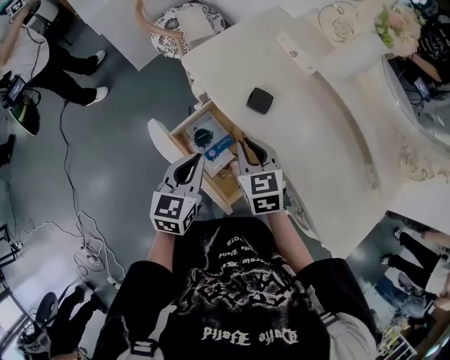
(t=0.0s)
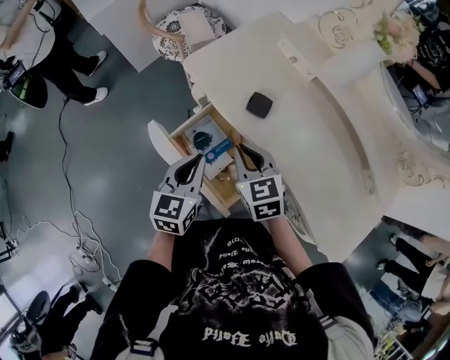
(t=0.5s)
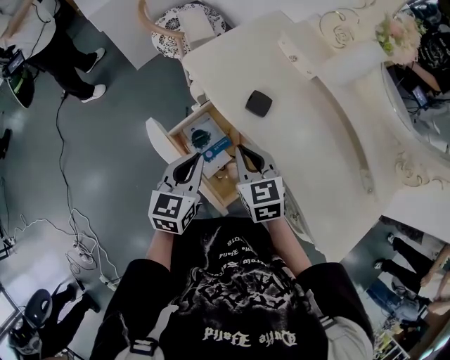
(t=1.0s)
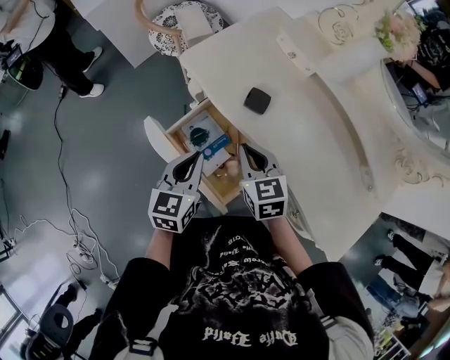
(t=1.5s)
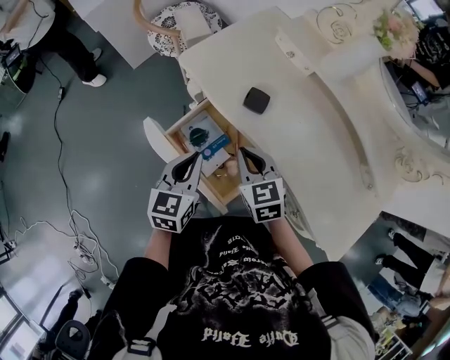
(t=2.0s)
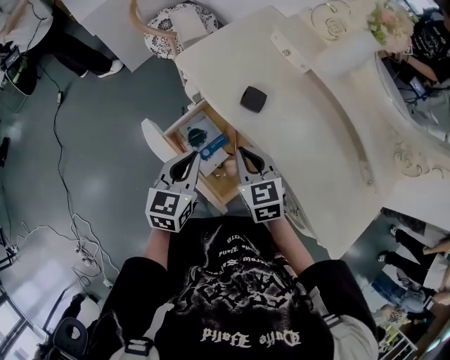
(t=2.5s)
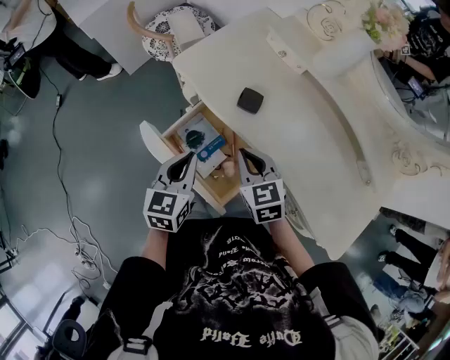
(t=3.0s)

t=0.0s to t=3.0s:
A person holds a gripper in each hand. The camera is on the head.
t=0.0s to t=3.0s: There are only small adjustments of the grippers.

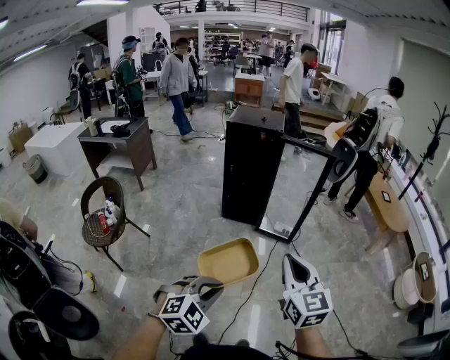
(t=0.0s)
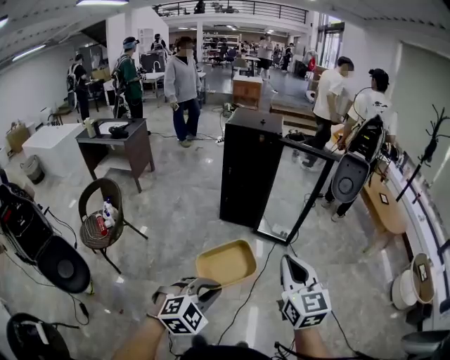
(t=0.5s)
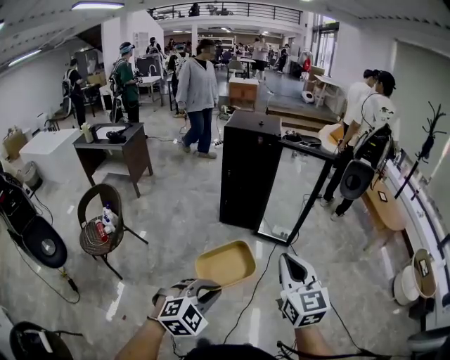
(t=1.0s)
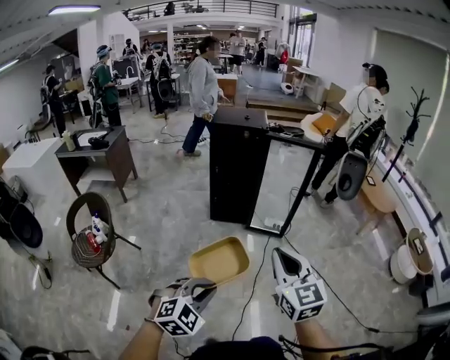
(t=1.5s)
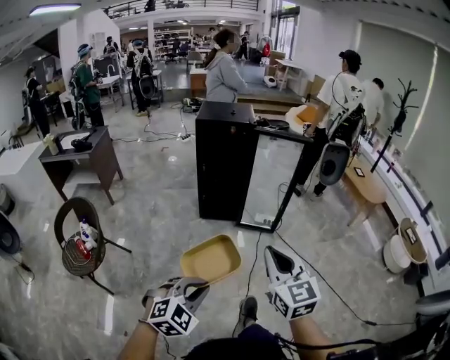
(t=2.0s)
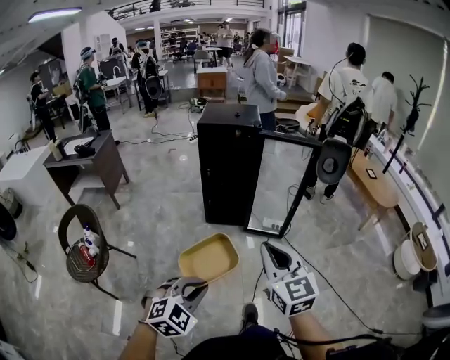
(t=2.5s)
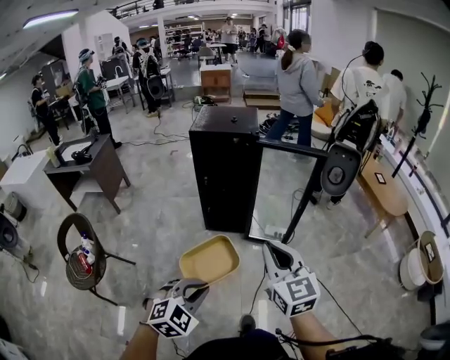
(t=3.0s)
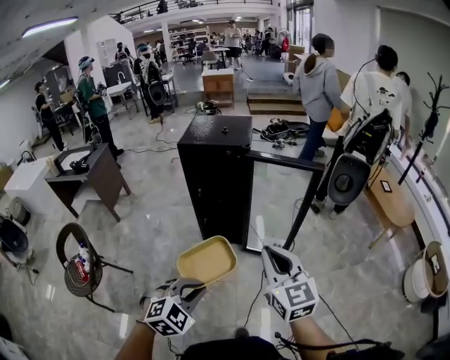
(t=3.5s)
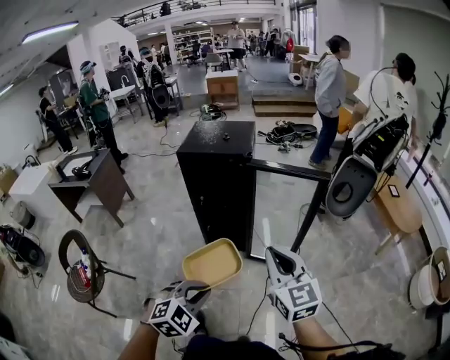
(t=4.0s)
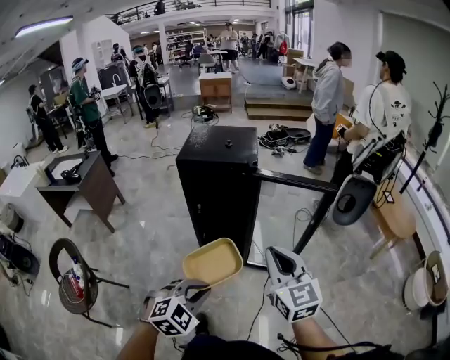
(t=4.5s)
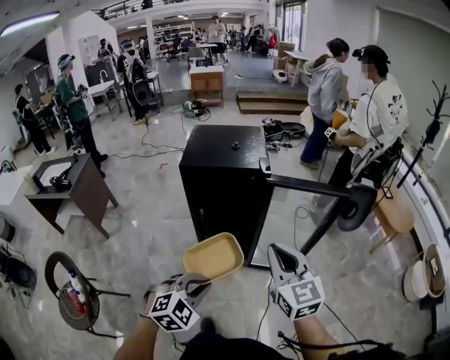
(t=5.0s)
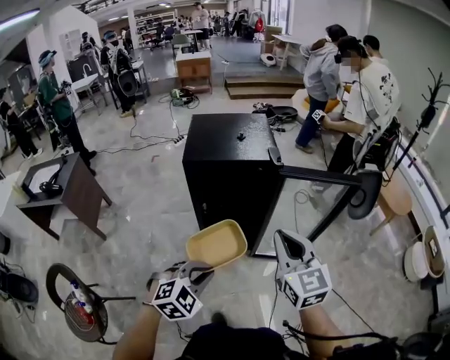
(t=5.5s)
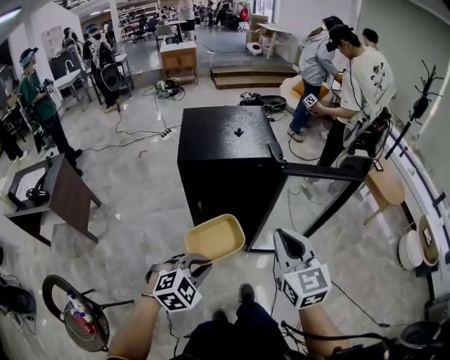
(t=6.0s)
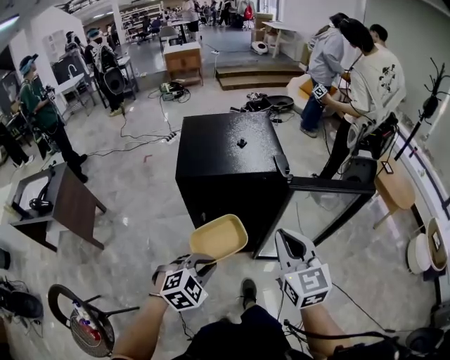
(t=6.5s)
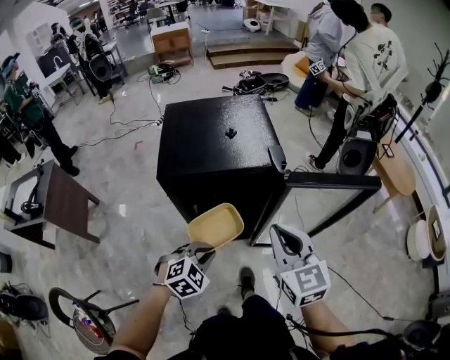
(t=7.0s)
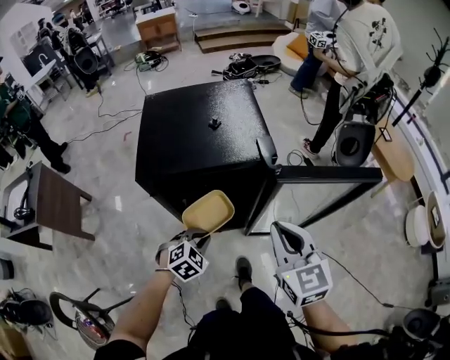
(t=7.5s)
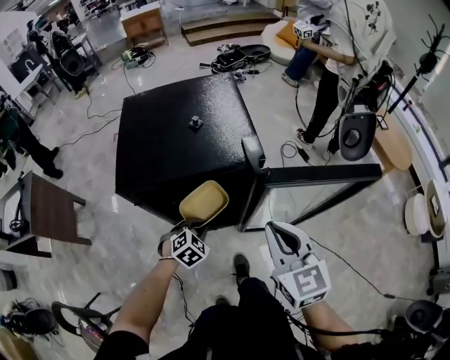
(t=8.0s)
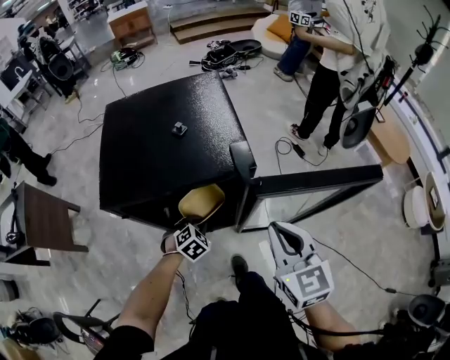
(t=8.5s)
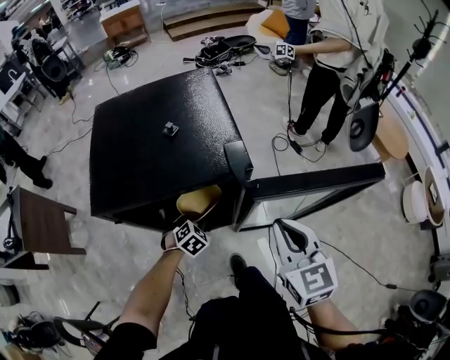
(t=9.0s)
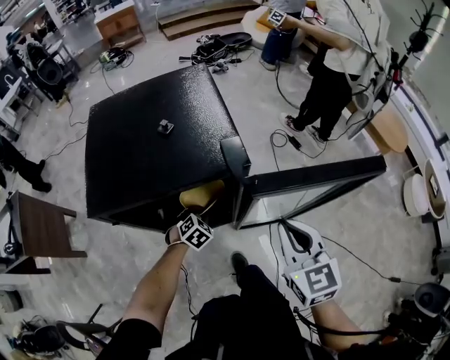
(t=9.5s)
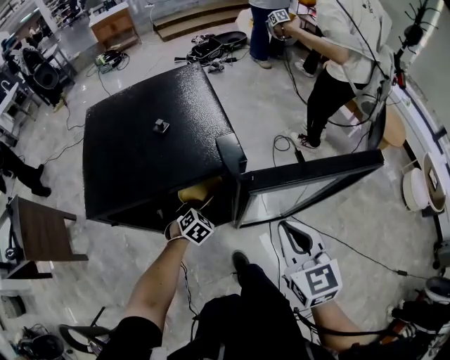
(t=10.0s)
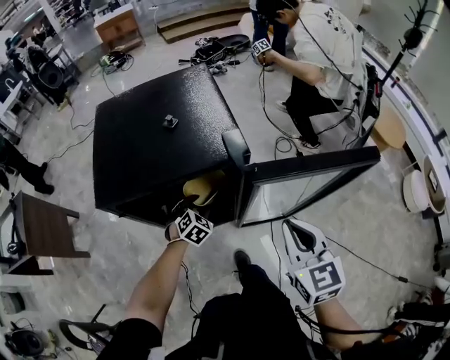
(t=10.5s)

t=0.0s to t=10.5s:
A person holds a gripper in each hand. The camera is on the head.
t=0.0s to t=2.0s: Both grippers move to the left, about 10 cm.
t=2.0s to t=4.0s: Both grippers travel together forward, some 30 cm.
t=4.0s to t=6.5s: The two grippers go roughly 30 cm forward and to the left.
t=6.5s to t=8.5s: The right gripper moves forward, downward and to the right, about 15 cm, while the left gripper heads forward and downward, covering about 30 cm.
t=8.5s to t=10.5s: The left gripper heads forward, covering approximately 5 cm, and opens up.

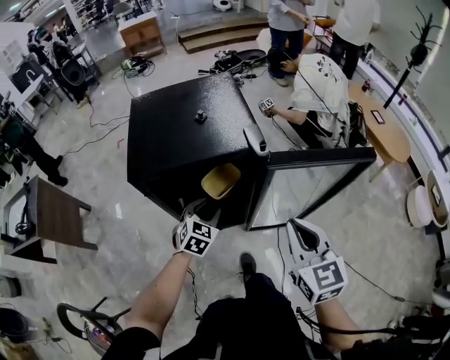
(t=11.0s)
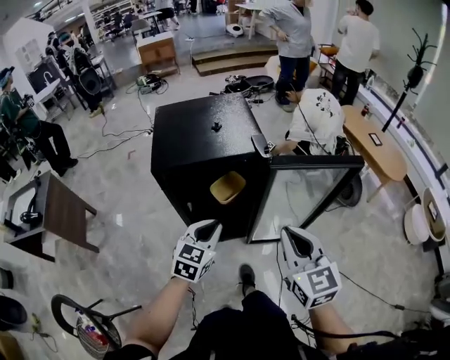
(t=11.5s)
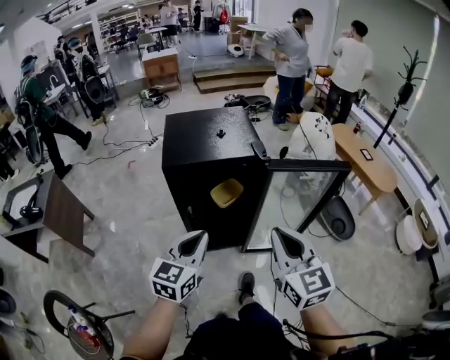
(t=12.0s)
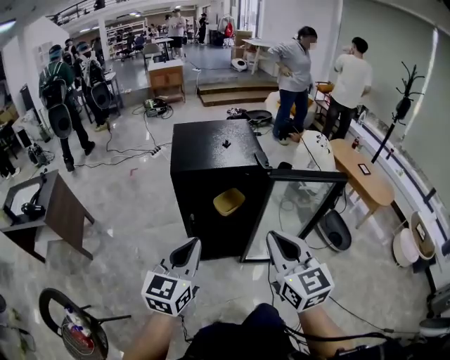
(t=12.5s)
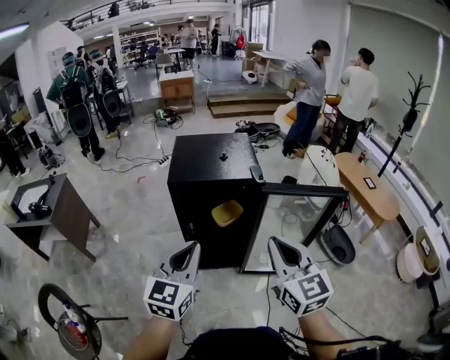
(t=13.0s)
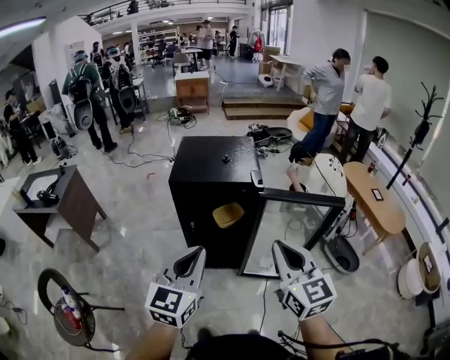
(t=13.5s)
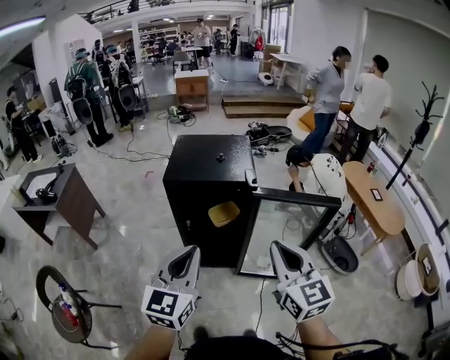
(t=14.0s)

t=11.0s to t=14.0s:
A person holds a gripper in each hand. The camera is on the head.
t=11.0s to t=12.5s: The right gripper heads backward, upward and to the left, covering about 20 cm, while the left gripper is displaced upward and backward by approximately 35 cm, angles its fingers upward, by roughly 30 degrees, and closes its fingers.
t=12.5s to t=14.0s: The right gripper is displaced to the right by some 10 cm. Meanwhile the left gripper heads to the right and upward, covering some 10 cm.

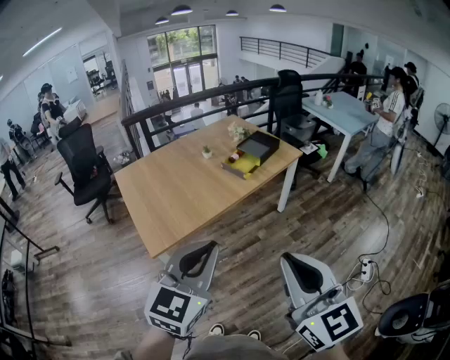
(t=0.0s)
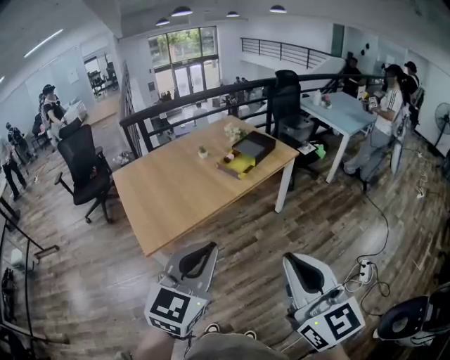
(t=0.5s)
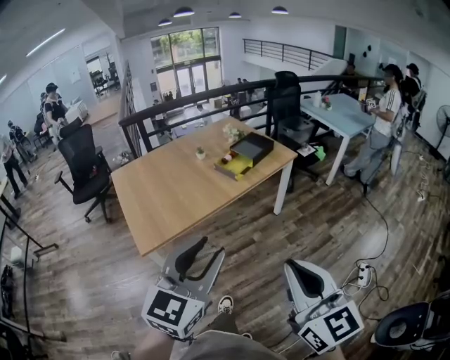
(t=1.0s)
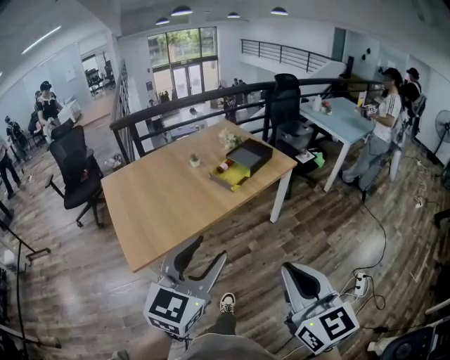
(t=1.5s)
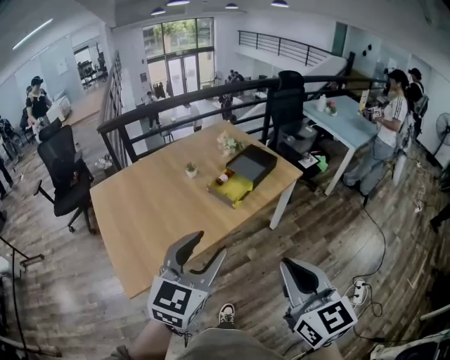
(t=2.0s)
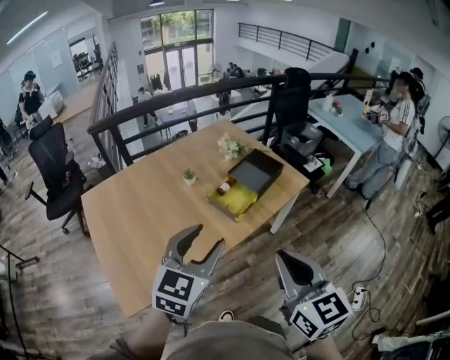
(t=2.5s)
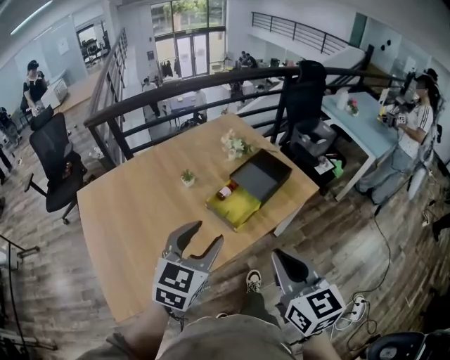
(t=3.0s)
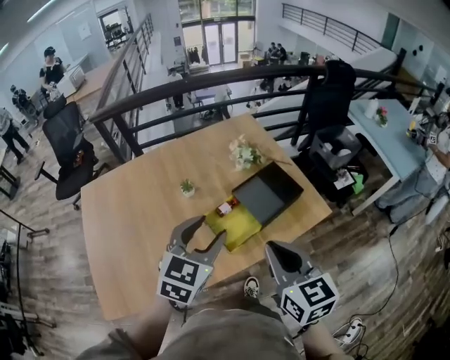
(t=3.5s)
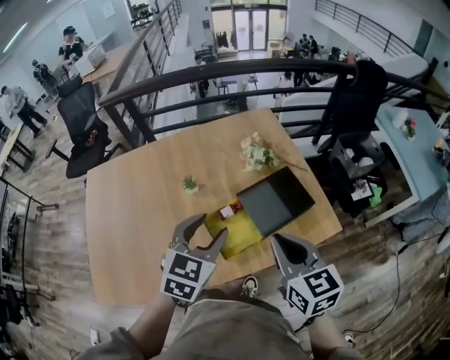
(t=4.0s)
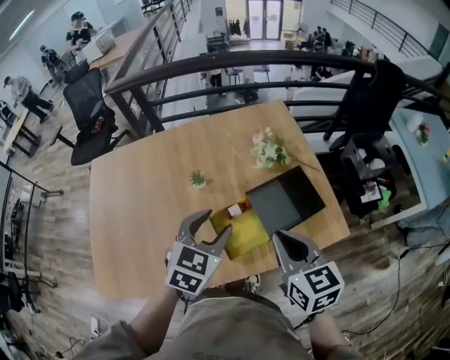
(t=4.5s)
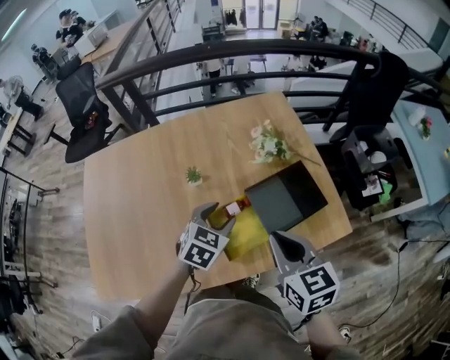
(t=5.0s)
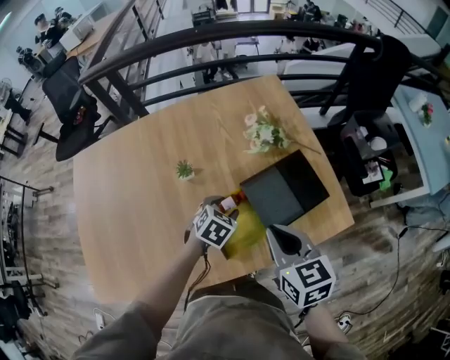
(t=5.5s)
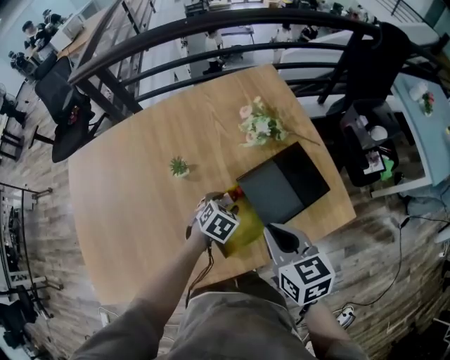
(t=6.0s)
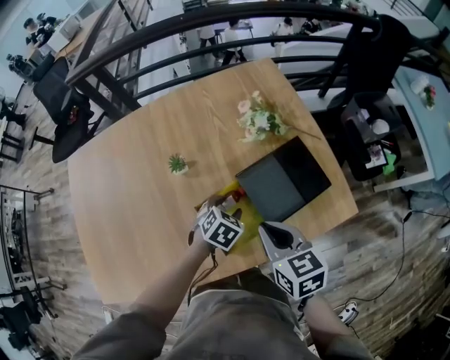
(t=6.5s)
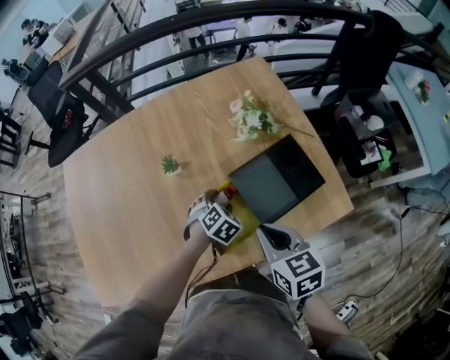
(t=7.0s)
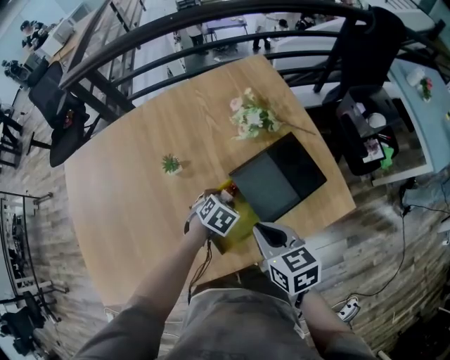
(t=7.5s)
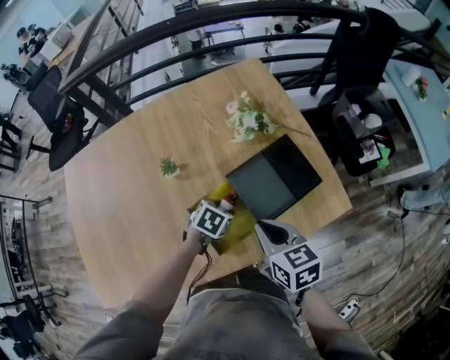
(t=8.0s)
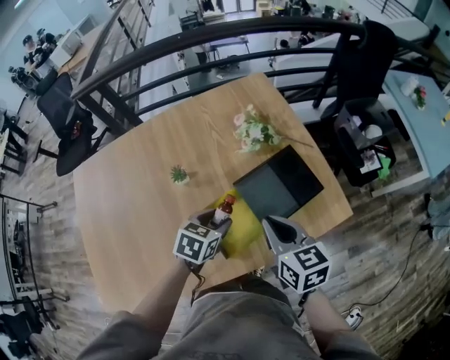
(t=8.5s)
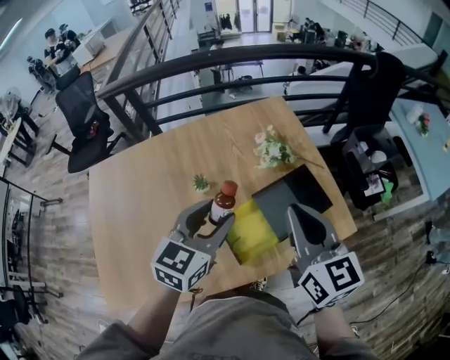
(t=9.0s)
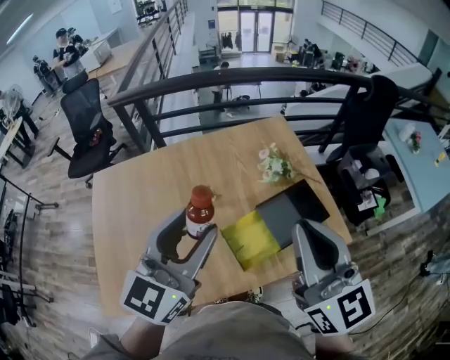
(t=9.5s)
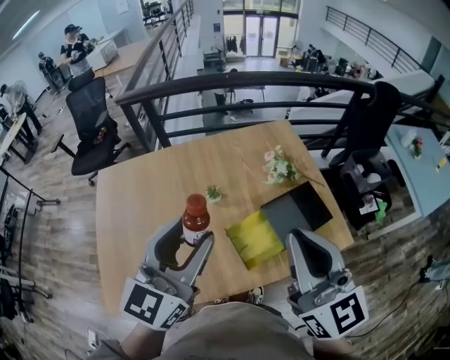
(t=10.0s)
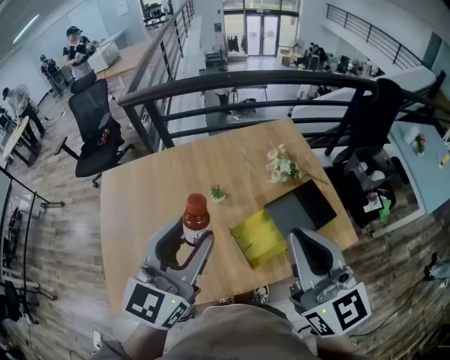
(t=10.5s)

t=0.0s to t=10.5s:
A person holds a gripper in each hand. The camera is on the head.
t=0.0s to t=2.0s: The grippers both shift forward by about 25 cm. The left gripper opens its fingers.
t=2.0s to t=4.0s: The two grippers travel together, forward, some 50 cm. The right gripper rotates approximately 30 degrees. The left gripper rotates some 30 degrees.
t=4.0s to t=6.5s: The left gripper shifts approximately 30 cm downward, and tilts its fingers about 30 degrees downward, while the right gripper is displaced downward and forward by approximately 15 cm.
t=6.5s to t=8.5s: The left gripper shifts some 10 cm upward.
t=8.5s to t=10.5s: The left gripper heads upward and to the left, covering about 35 cm, and tips its fingers upward by some 50 degrees, while the right gripper shifts some 25 cm upward, and tips its fingers upward by approximately 30 degrees.
